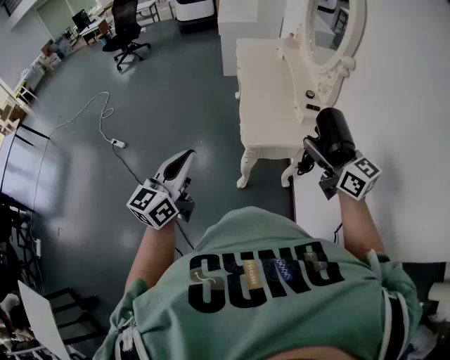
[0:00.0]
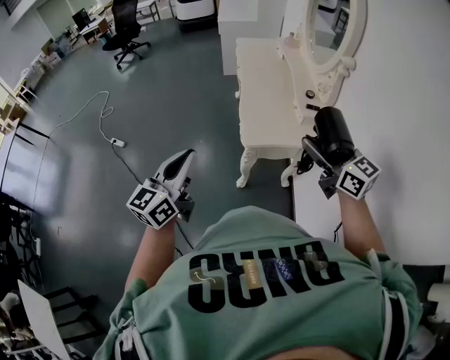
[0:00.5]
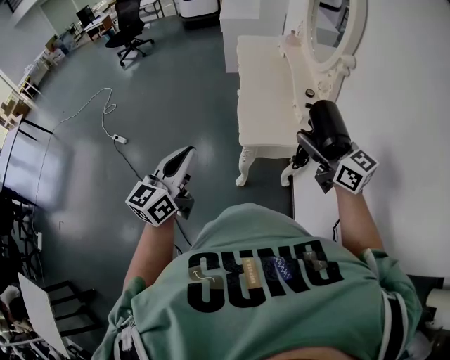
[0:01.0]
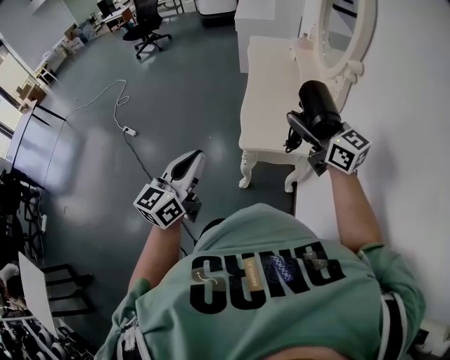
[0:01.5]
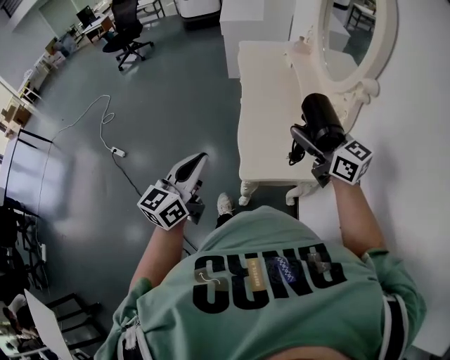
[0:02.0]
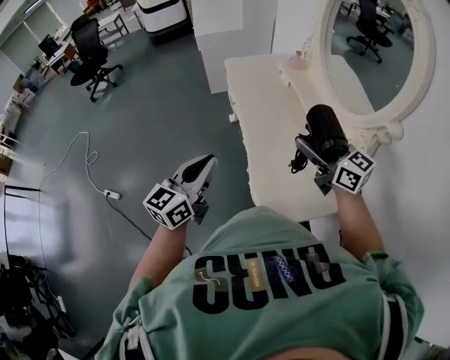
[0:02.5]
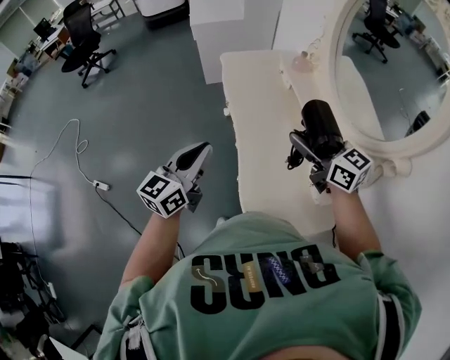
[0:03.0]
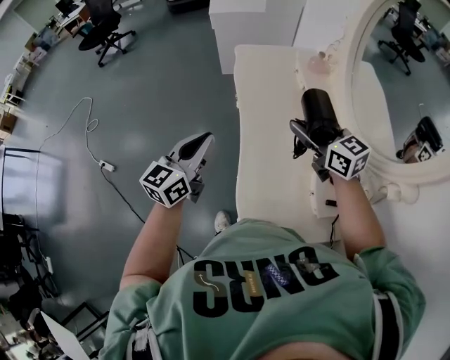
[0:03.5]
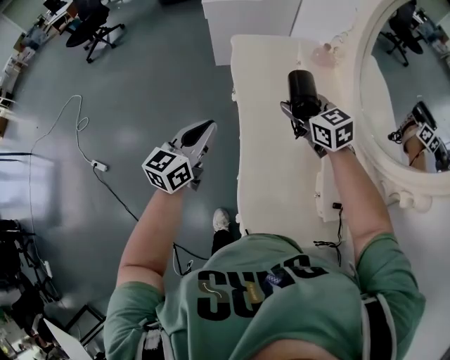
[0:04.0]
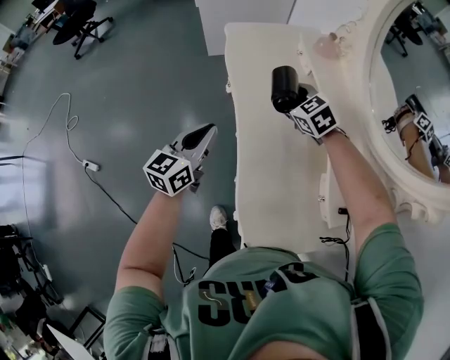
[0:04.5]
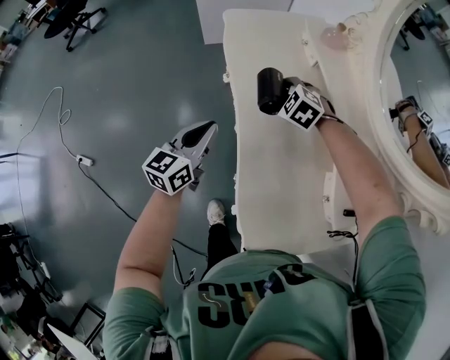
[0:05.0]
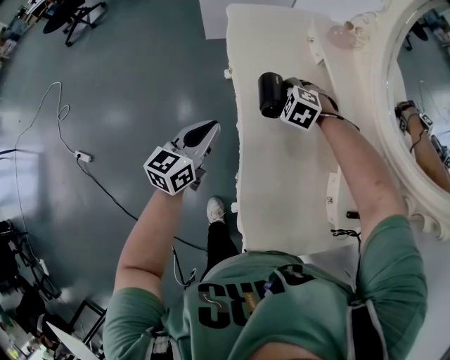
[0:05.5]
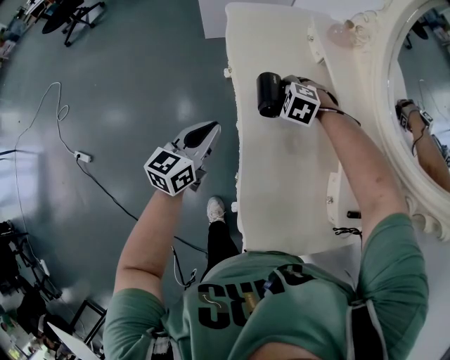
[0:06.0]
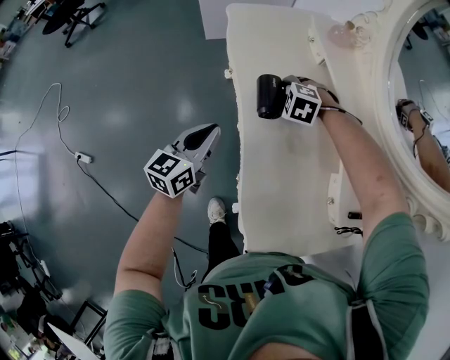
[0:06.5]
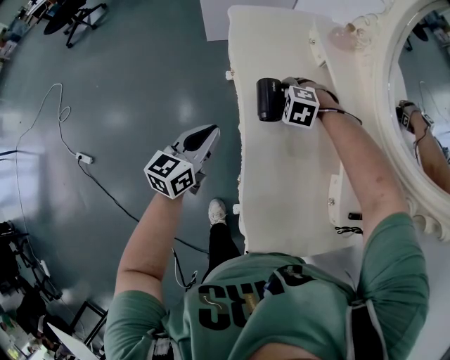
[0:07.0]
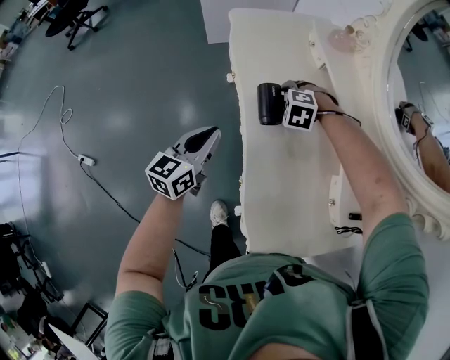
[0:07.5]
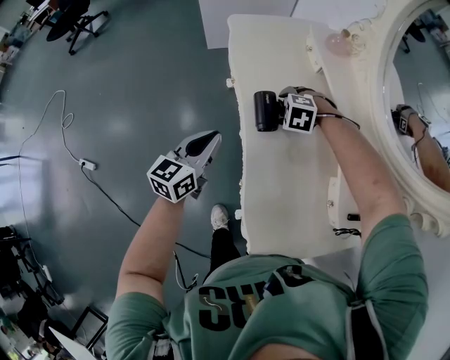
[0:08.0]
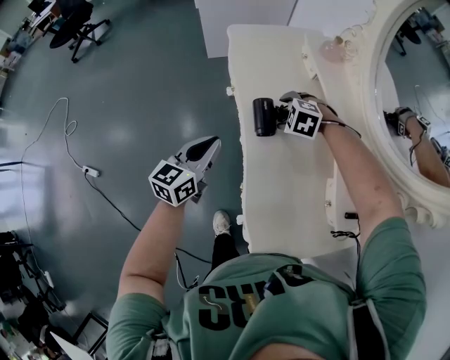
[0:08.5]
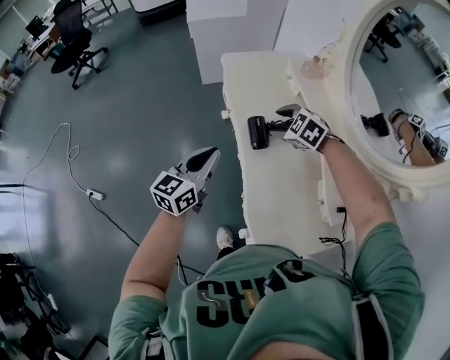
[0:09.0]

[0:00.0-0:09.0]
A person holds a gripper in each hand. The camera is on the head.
0:00.0 to 0:02.0: The left gripper shifts some 20 cm forward and to the right, while the right gripper shifts roughly 25 cm forward.
0:02.0 to 0:04.5: The two grippers travel together, forward, about 50 cm. The right gripper travels downward by about 25 cm, and tilts its fingers roughly 40 degrees downward.
0:04.5 to 0:07.0: The right gripper heads downward, covering approximately 10 cm, and angles its fingers downward, by approximately 30 degrees. Meanwhile the left gripper travels downward by about 5 cm.
0:07.0 to 0:09.0: The two grippers go about 15 cm upward. The right gripper rotates approximately 30 degrees.

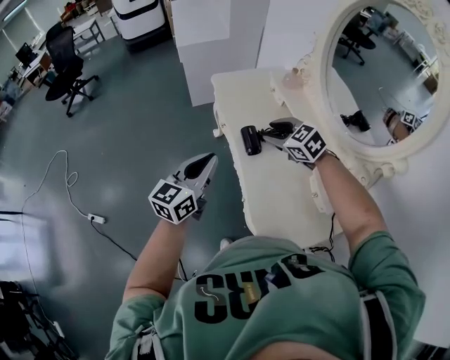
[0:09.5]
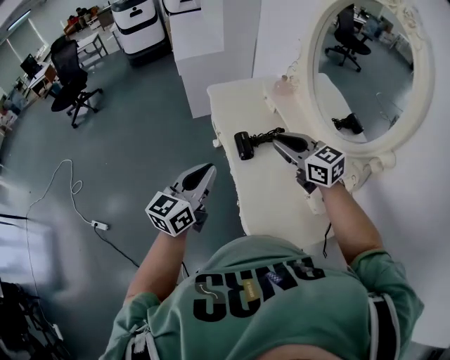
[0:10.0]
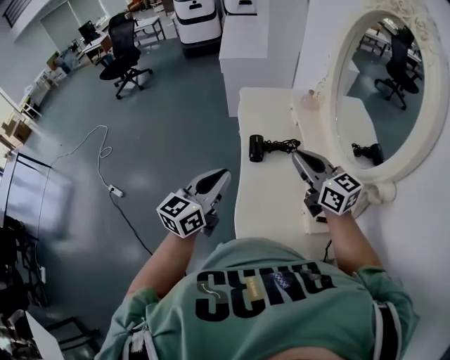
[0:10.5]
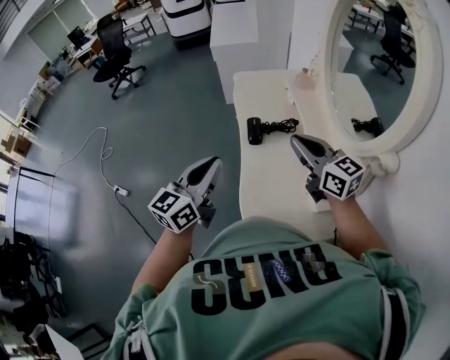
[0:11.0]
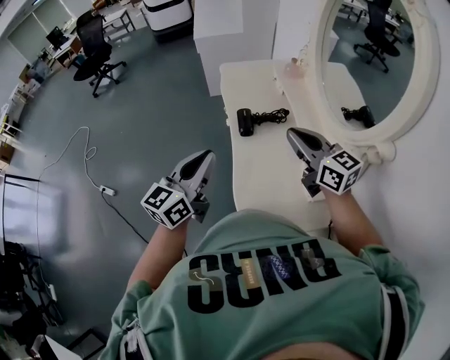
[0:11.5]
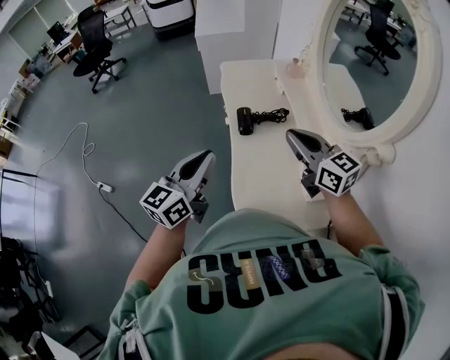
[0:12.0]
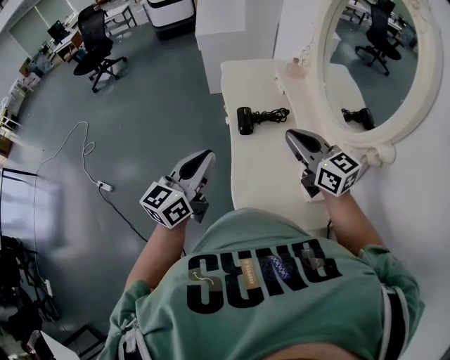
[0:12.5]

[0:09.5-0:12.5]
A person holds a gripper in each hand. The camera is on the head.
0:09.5 to 0:11.0: The left gripper moves backward, to the right and upward, about 20 cm, while the right gripper travels backward, upward and to the right by roughly 25 cm, angles its fingers upward, by approximately 40 degrees, and closes up.
0:11.0 to 0:12.5: There are only small adjustments of the grippers.

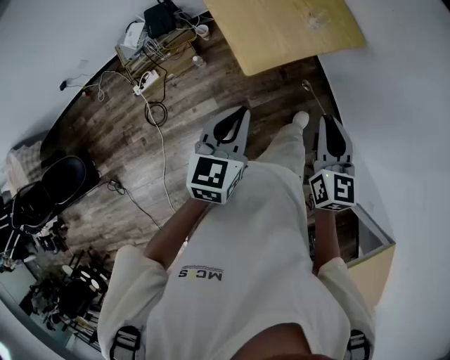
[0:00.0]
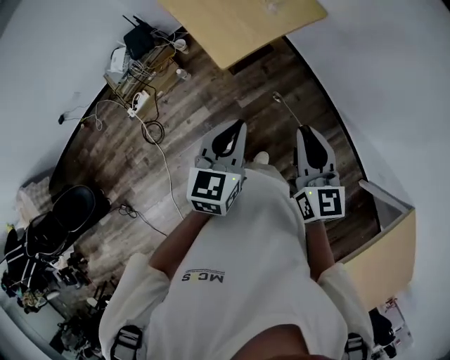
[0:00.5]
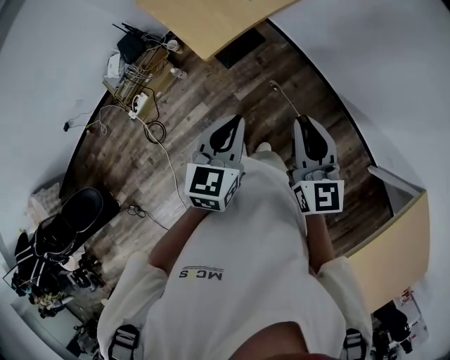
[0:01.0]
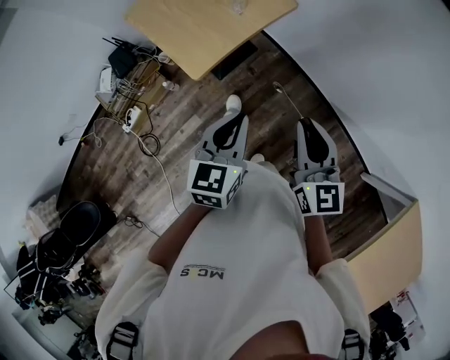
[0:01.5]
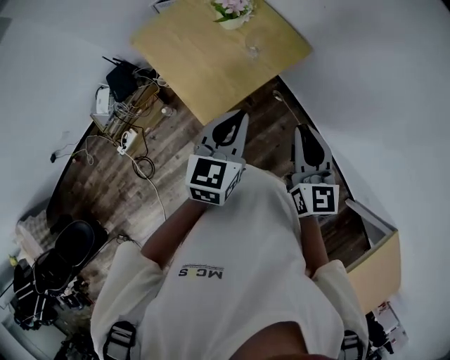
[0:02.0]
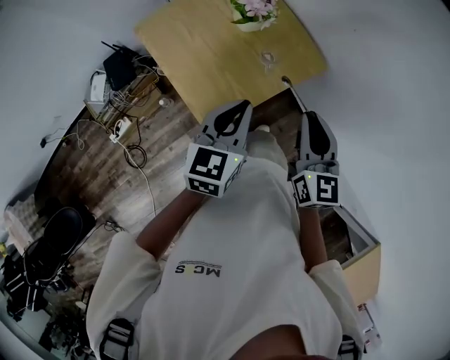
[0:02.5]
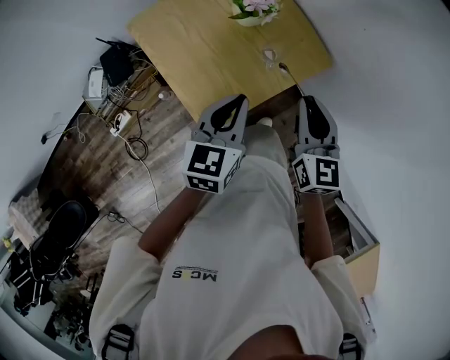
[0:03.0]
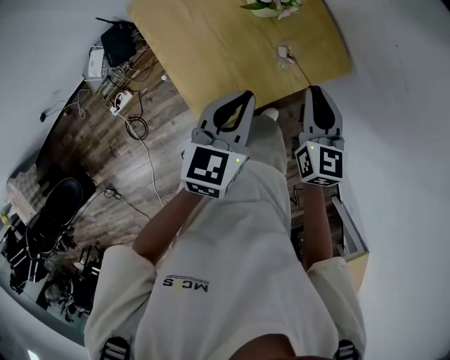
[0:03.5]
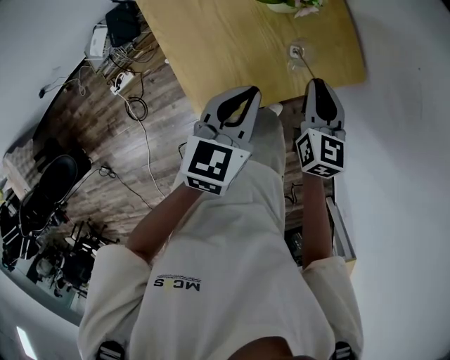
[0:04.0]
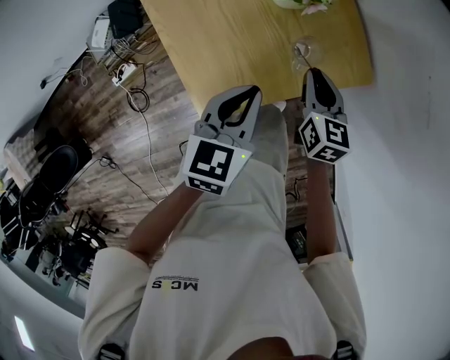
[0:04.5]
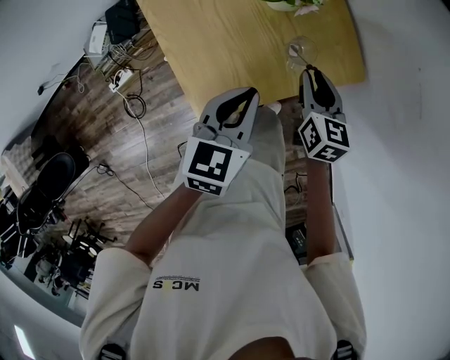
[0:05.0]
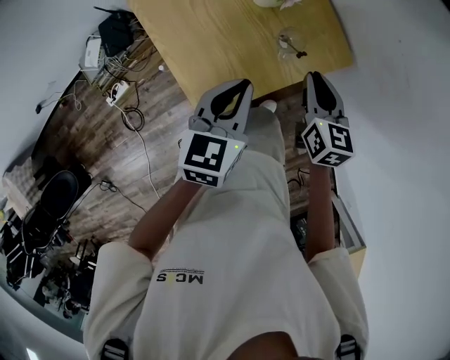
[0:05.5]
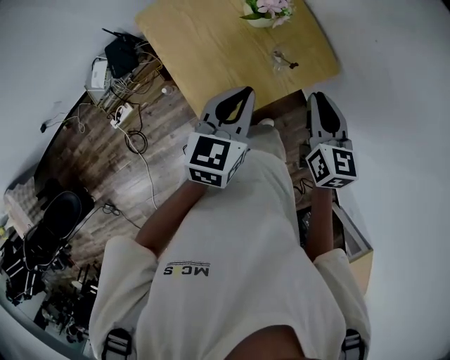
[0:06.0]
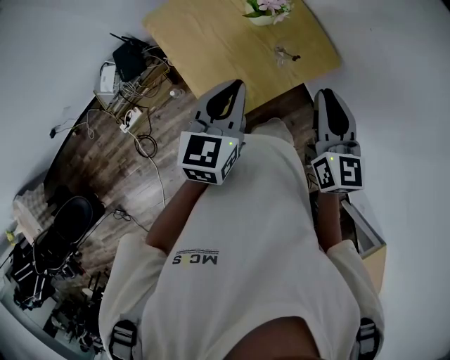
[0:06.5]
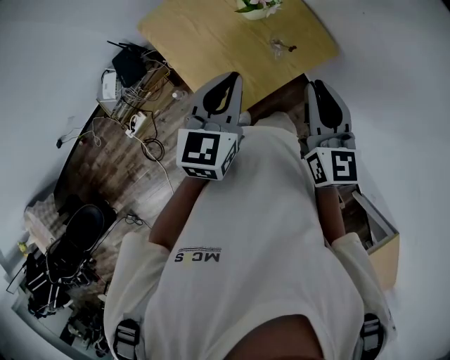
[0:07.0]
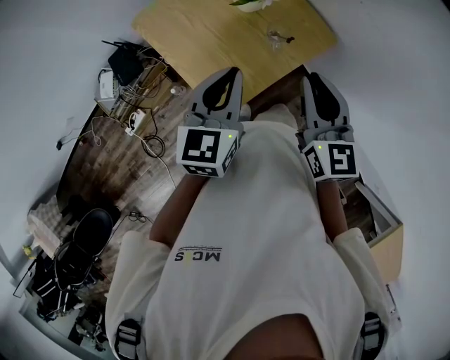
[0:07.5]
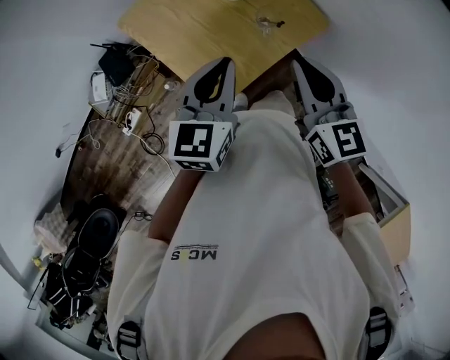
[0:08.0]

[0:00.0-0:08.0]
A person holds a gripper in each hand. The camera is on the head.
0:00.0 to 0:02.0: The right gripper goes about 10 cm forward and to the right; the left gripper shifts roughly 20 cm forward and to the right.
0:02.0 to 0:04.0: The grippers both shift forward and downward by roughly 30 cm. The right gripper changes its angle by roughly 20 degrees.
0:04.0 to 0:06.0: The left gripper moves upward, roughly 10 cm; the right gripper is displaced upward and backward by some 15 cm.
0:06.0 to 0:08.0: The left gripper shifts by about 5 cm. Meanwhile the right gripper travels upward, to the left and backward by about 10 cm.

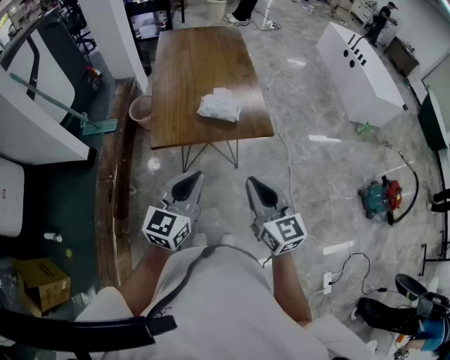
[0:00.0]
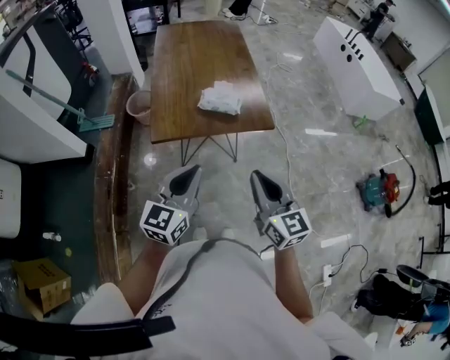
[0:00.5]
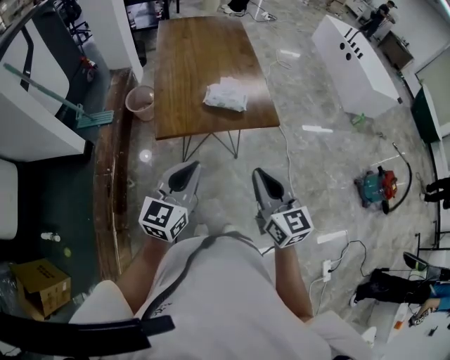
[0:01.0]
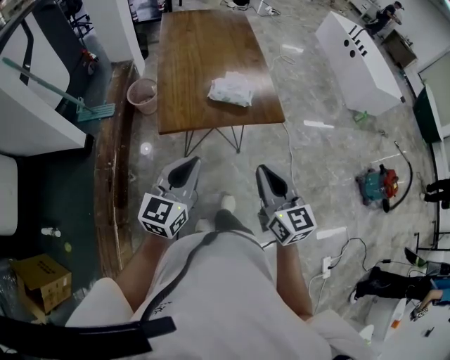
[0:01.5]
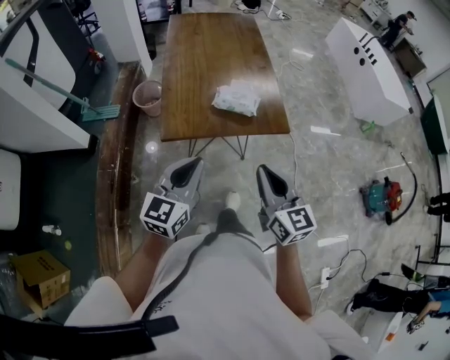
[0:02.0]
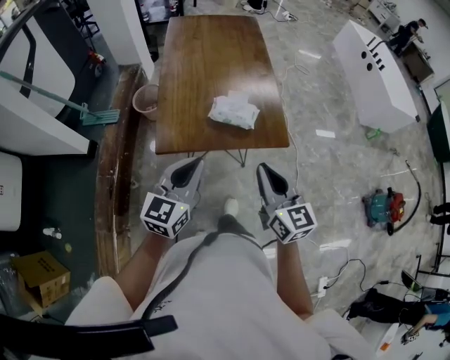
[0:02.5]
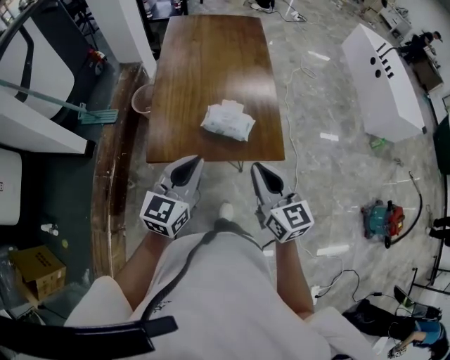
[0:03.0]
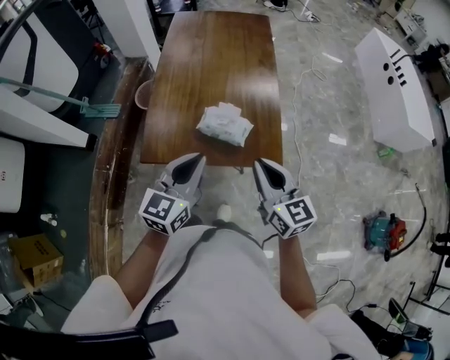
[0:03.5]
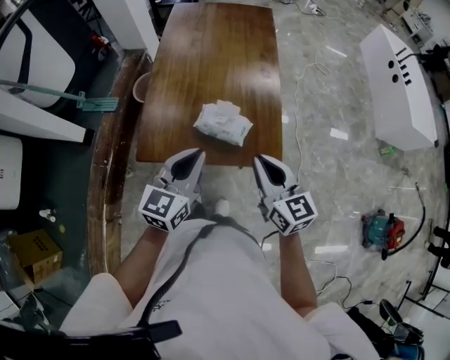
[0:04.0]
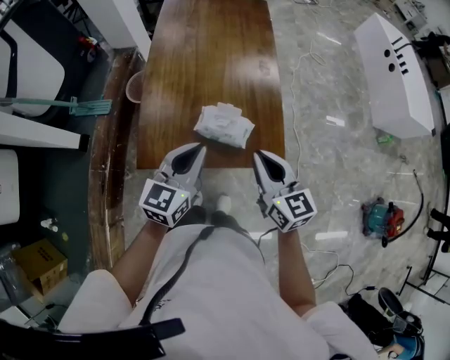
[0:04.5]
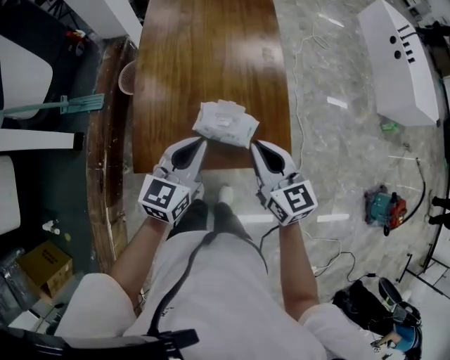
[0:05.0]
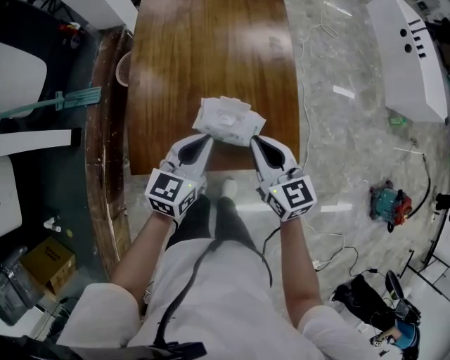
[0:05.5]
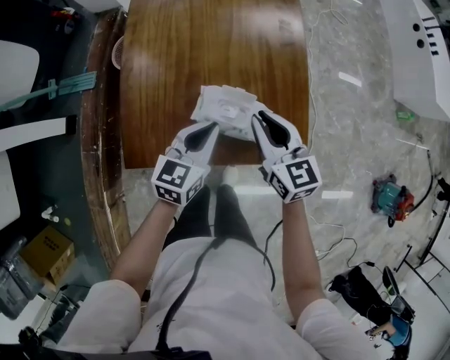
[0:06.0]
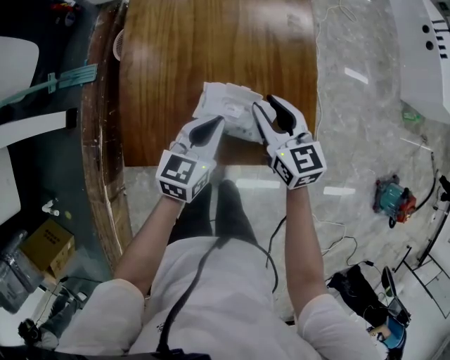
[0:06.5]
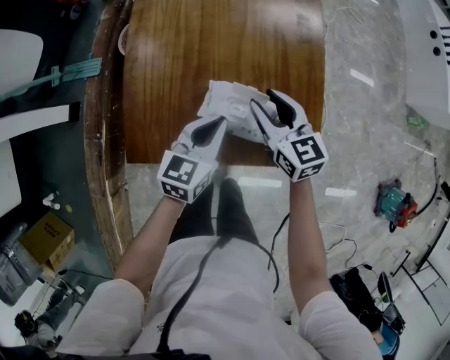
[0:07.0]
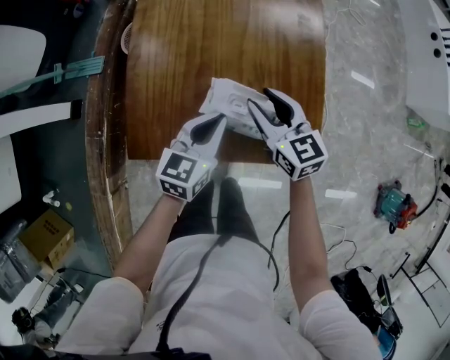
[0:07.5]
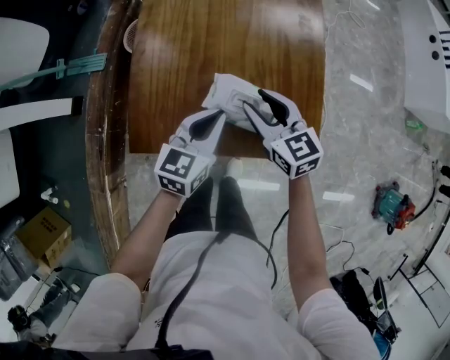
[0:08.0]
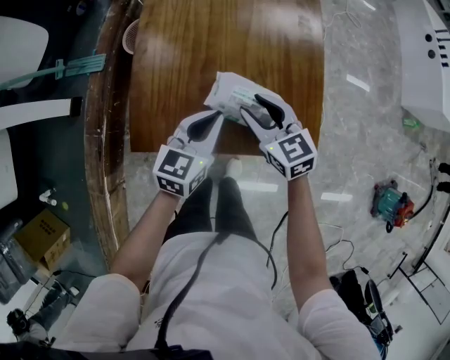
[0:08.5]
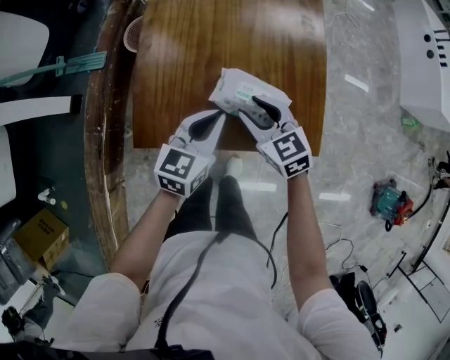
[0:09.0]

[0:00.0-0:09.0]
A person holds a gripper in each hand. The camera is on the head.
0:00.0 to 0:02.0: The right gripper is displaced forward by approximately 5 cm. Meanwhile the left gripper is displaced to the left by some 10 cm.
0:02.0 to 0:04.5: The left gripper is displaced forward and to the right by about 30 cm. The right gripper goes approximately 25 cm forward.
0:04.5 to 0:07.0: The two grippers go approximately 25 cm downward and forward. The right gripper opens its fingers.
0:07.0 to 0:09.0: The left gripper changes place by about 5 cm. The right gripper travels to the left and backward by about 10 cm.
